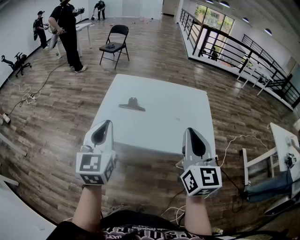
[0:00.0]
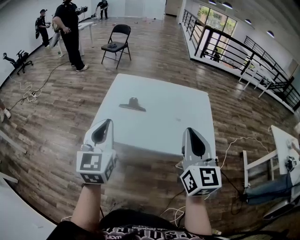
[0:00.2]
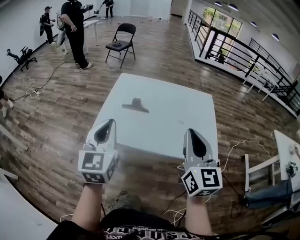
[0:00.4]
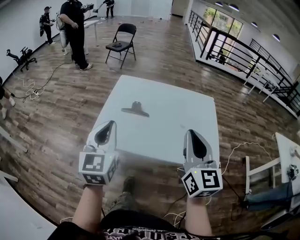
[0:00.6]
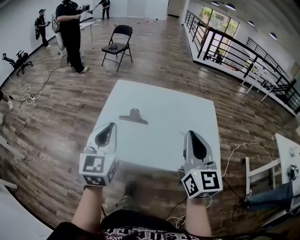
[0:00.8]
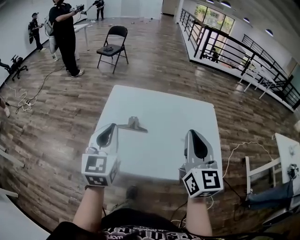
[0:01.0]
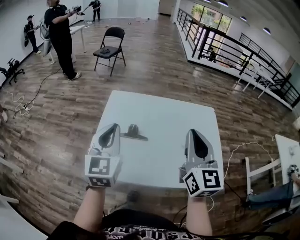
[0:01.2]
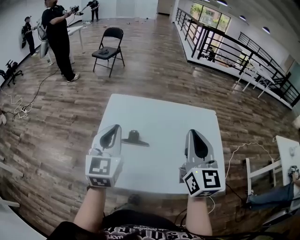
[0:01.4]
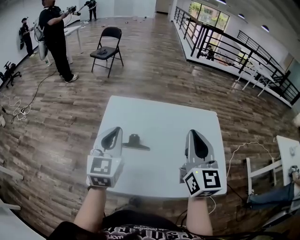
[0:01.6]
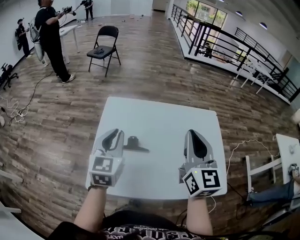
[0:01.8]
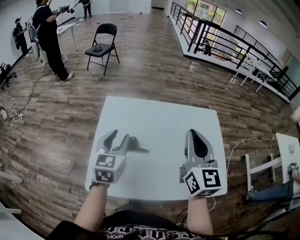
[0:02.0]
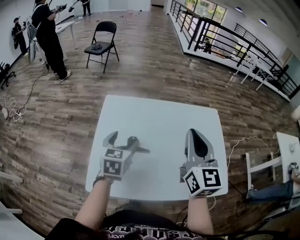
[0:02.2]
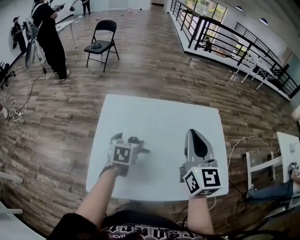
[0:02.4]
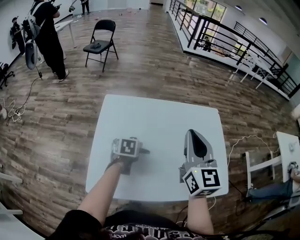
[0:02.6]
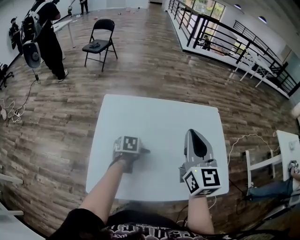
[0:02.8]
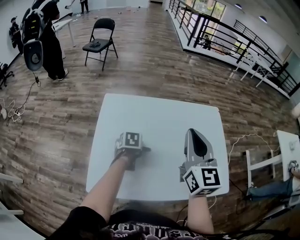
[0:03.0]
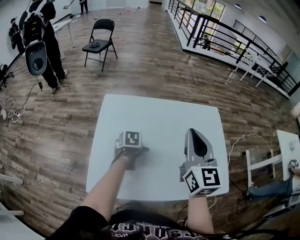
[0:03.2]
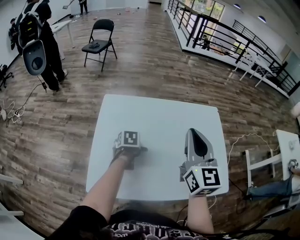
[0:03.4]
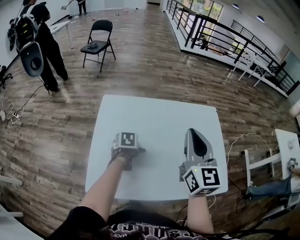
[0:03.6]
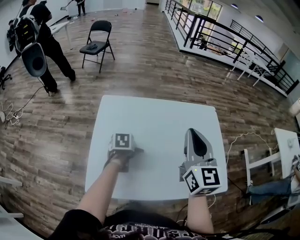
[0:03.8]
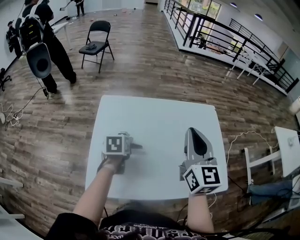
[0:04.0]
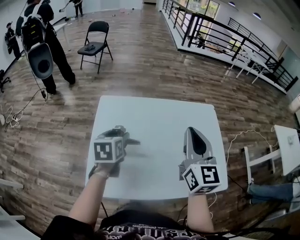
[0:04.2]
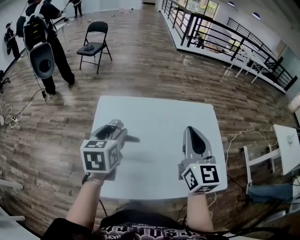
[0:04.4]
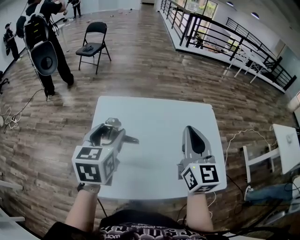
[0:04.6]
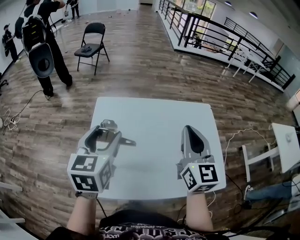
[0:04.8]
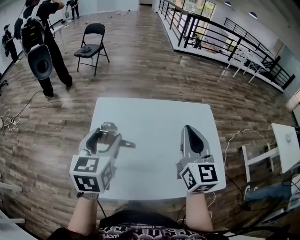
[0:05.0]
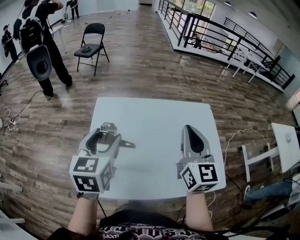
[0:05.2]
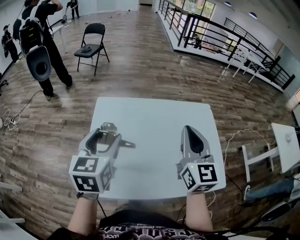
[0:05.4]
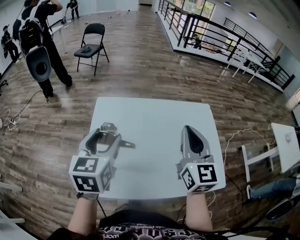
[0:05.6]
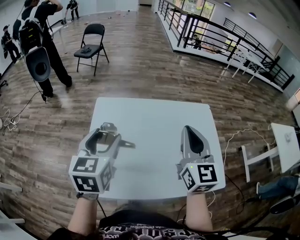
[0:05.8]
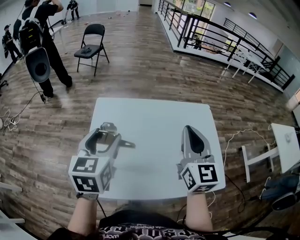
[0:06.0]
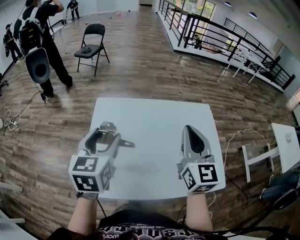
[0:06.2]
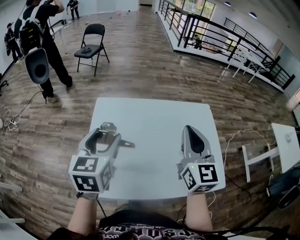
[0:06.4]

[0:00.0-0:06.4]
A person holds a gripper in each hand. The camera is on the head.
0:00.0 to 0:01.6: Both grippers travel together forward, roughly 25 cm.
0:01.6 to 0:03.2: The right gripper shifts by about 5 cm. The left gripper travels downward by some 30 cm, angles its fingers downward, by about 60 degrees, and opens its fingers.
0:03.2 to 0:04.8: The left gripper shifts approximately 30 cm upward, and points its fingers approximately 40 degrees further upward.
0:04.8 to 0:06.4: Neither gripper changes place.

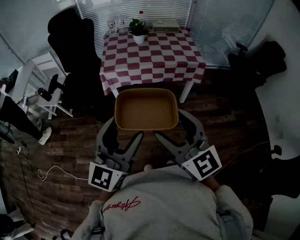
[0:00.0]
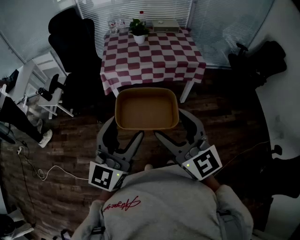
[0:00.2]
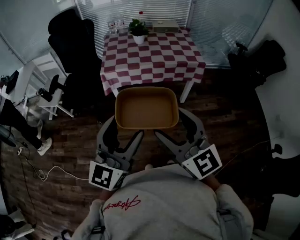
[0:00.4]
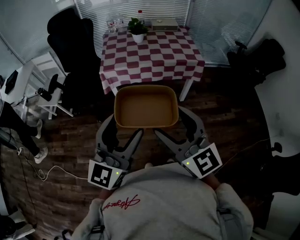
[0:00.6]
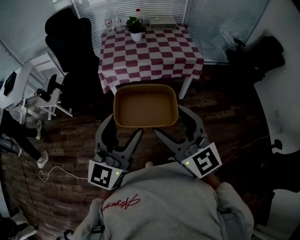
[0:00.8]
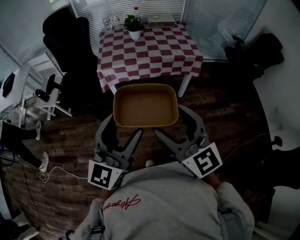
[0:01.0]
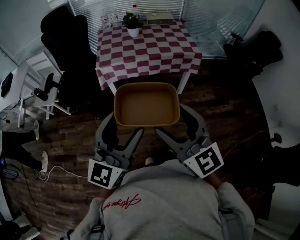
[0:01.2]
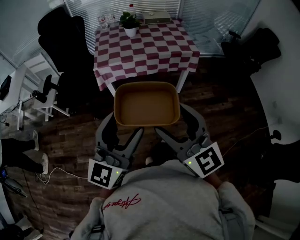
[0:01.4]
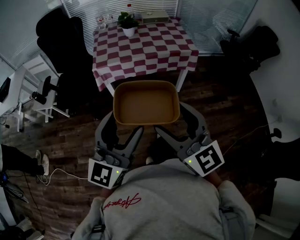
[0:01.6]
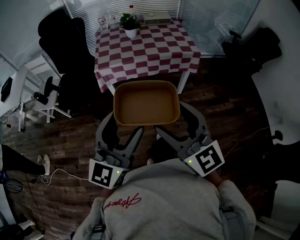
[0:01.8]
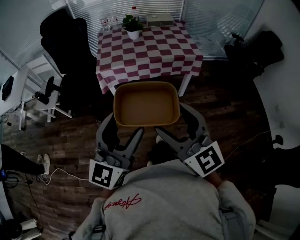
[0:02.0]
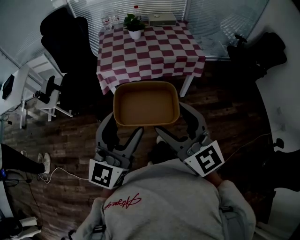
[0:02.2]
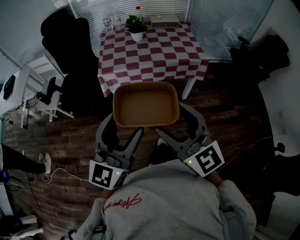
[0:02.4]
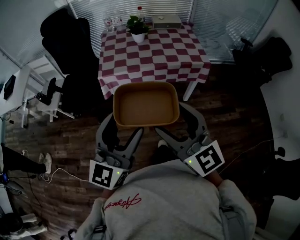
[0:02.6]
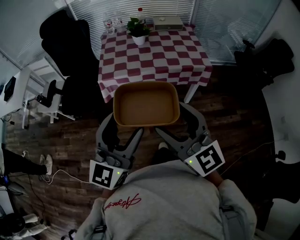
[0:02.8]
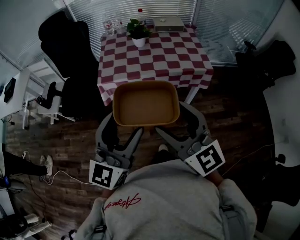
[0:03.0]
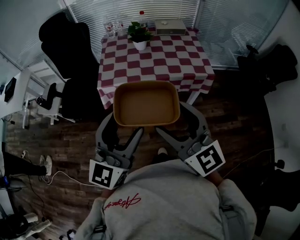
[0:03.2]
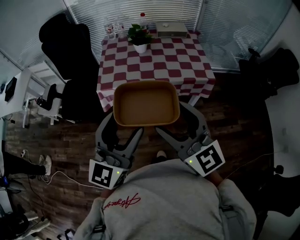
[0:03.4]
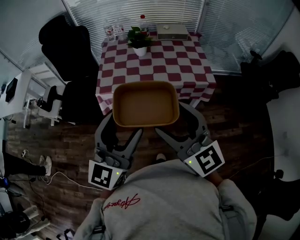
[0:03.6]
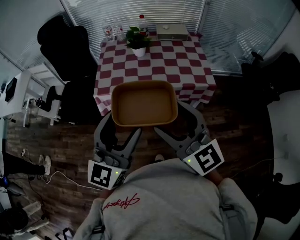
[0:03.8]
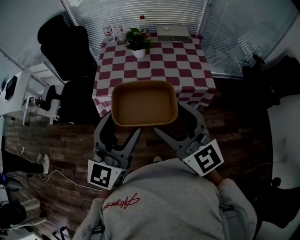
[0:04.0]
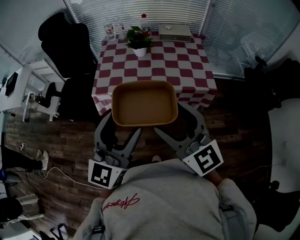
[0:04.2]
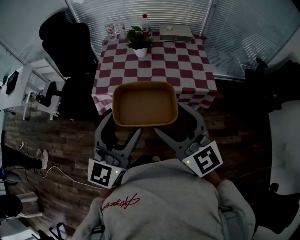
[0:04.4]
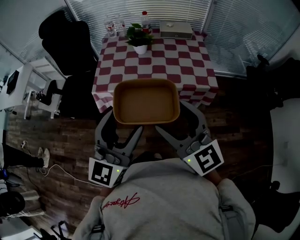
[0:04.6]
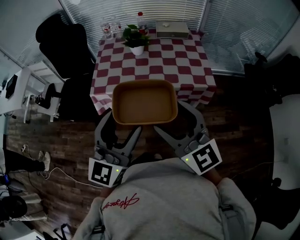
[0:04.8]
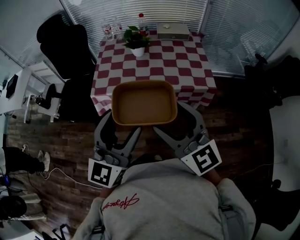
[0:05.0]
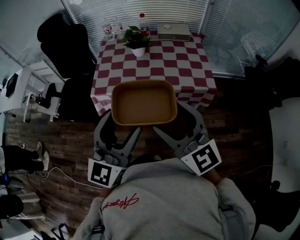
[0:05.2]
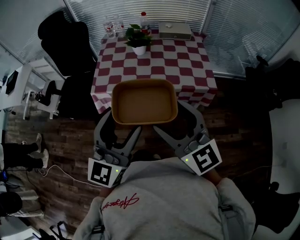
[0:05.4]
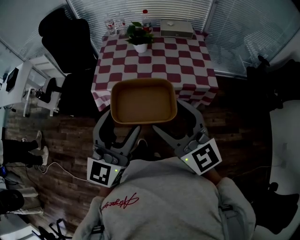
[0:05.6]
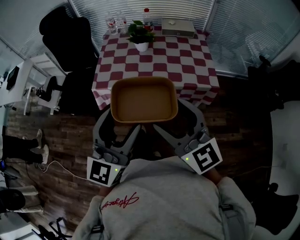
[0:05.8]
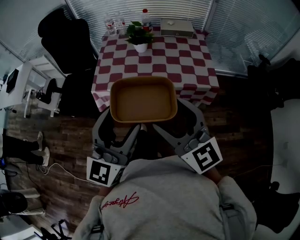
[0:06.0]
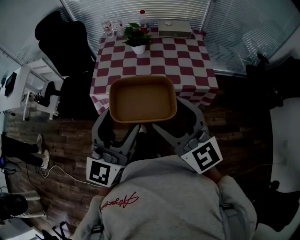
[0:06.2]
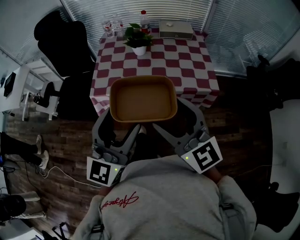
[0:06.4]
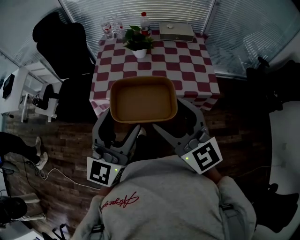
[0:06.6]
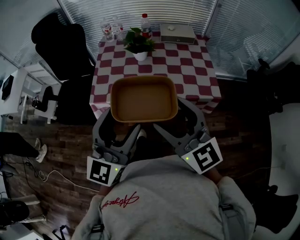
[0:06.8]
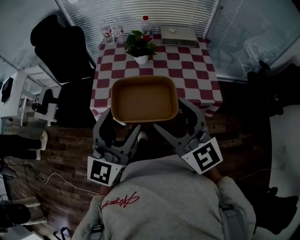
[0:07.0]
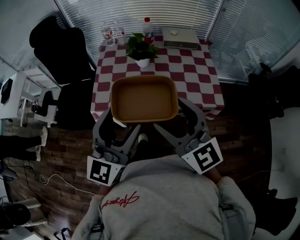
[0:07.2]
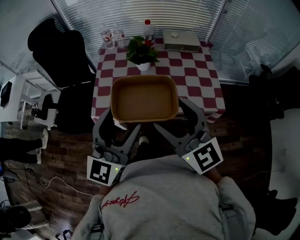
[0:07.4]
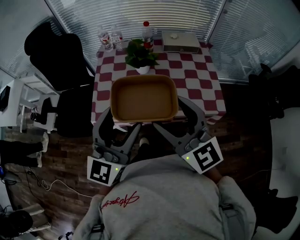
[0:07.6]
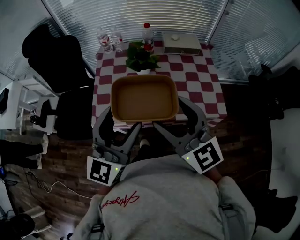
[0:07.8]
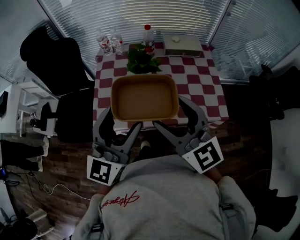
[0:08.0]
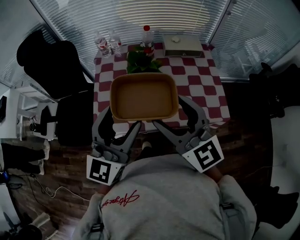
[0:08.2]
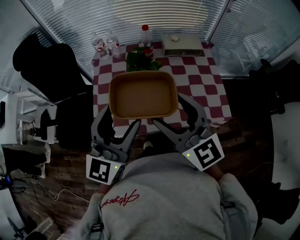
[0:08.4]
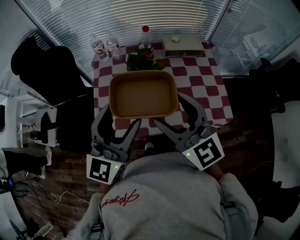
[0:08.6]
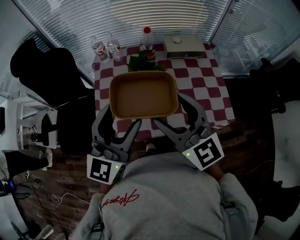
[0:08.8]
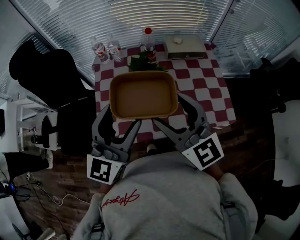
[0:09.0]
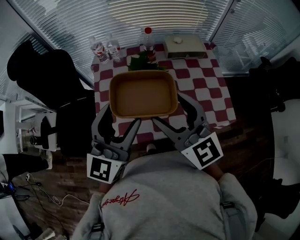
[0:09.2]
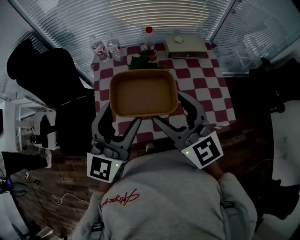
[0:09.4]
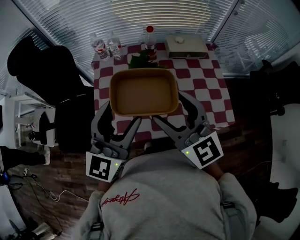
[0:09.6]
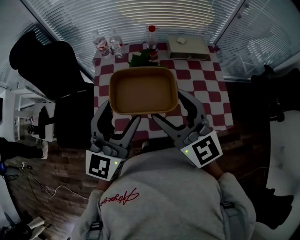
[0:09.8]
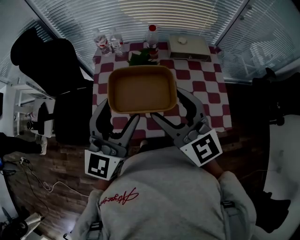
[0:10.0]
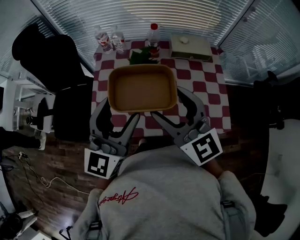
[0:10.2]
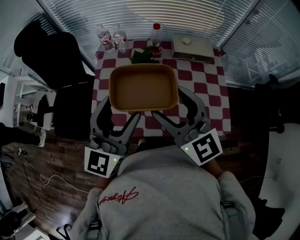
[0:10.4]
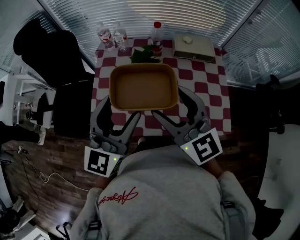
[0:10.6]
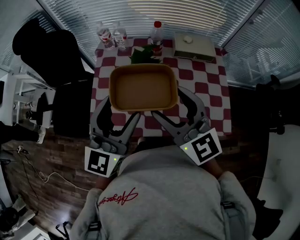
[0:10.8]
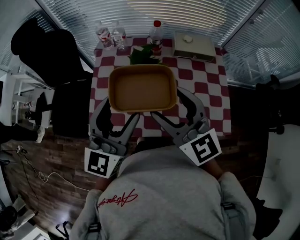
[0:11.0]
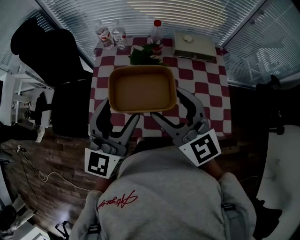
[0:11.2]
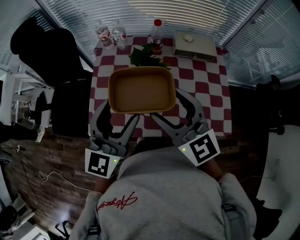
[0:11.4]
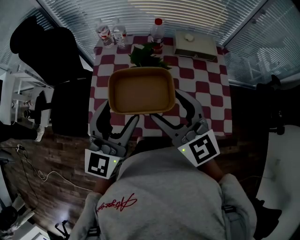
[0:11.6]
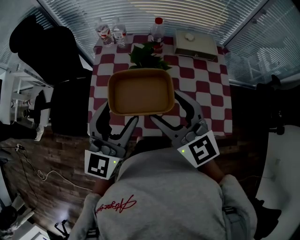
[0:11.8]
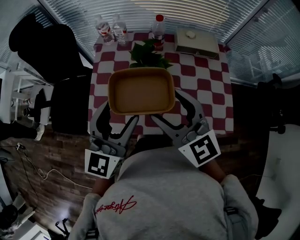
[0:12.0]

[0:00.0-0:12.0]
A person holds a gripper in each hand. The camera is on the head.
0:00.0 to 0:01.6: The grippers stay close to where they were, moving slightly.
0:01.6 to 0:03.0: Both grippers travel together forward, about 15 cm.
0:03.0 to 0:04.4: Both grippers travel together forward and to the right, about 15 cm.
0:04.4 to 0:06.0: Both grippers stay about where they are.
0:06.0 to 0:07.6: Both grippers travel together forward, some 20 cm.
0:07.6 to 0:09.0: The grippers both shift forward by approximately 15 cm.
0:09.0 to 0:10.4: The grippers make only small movements.
0:10.4 to 0:12.0: The left gripper goes roughly 5 cm downward.

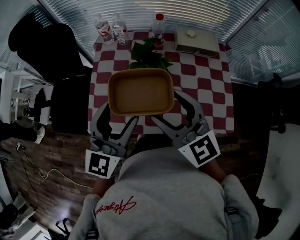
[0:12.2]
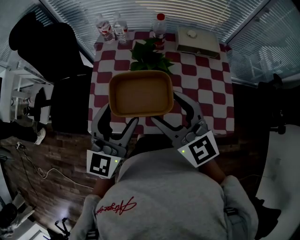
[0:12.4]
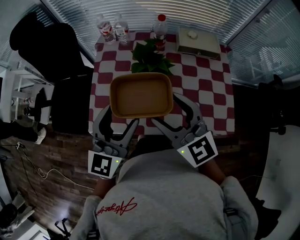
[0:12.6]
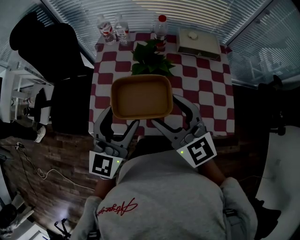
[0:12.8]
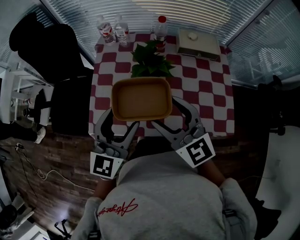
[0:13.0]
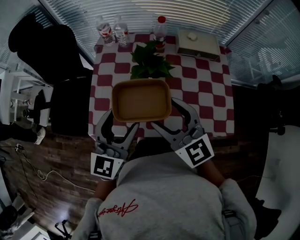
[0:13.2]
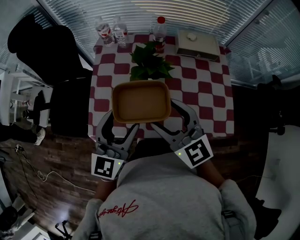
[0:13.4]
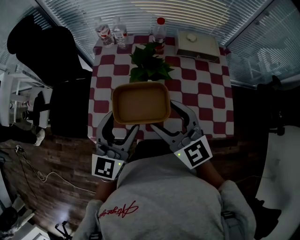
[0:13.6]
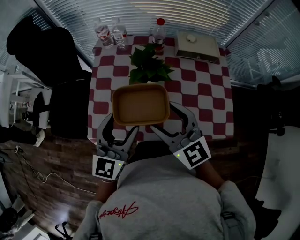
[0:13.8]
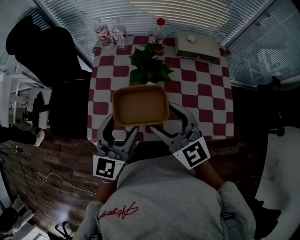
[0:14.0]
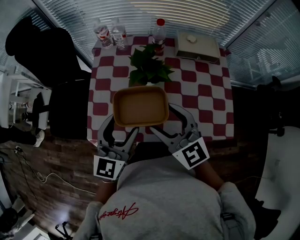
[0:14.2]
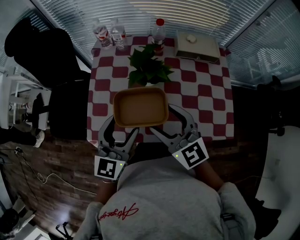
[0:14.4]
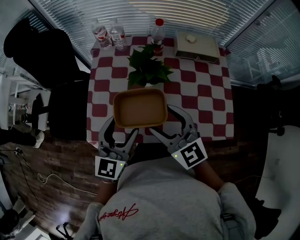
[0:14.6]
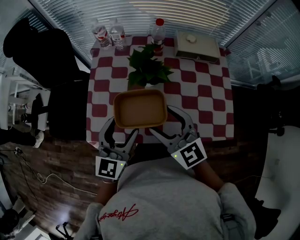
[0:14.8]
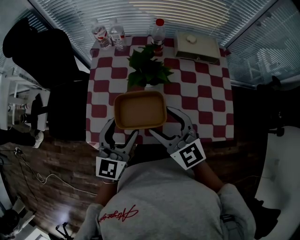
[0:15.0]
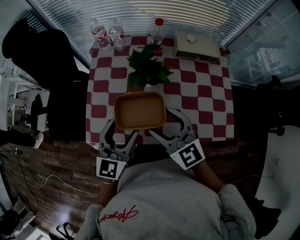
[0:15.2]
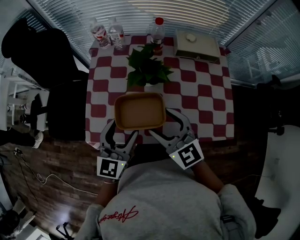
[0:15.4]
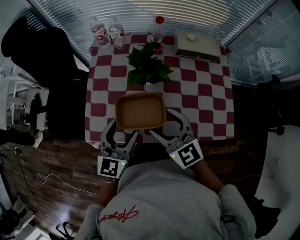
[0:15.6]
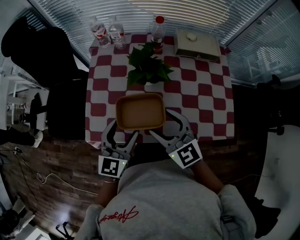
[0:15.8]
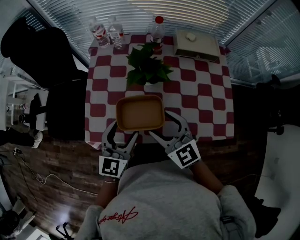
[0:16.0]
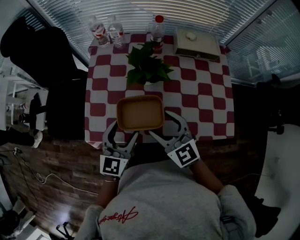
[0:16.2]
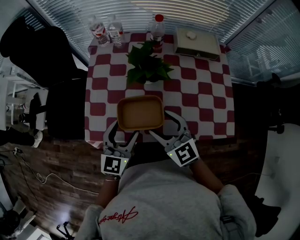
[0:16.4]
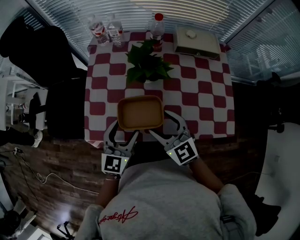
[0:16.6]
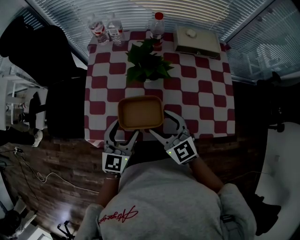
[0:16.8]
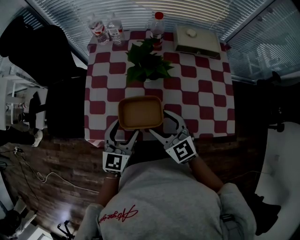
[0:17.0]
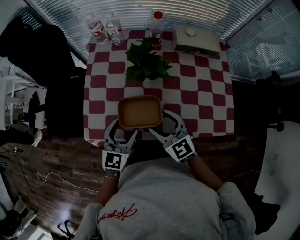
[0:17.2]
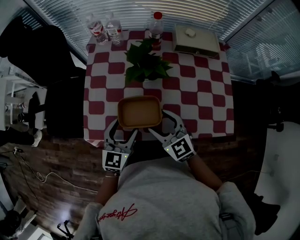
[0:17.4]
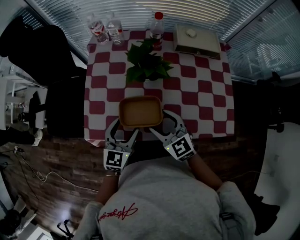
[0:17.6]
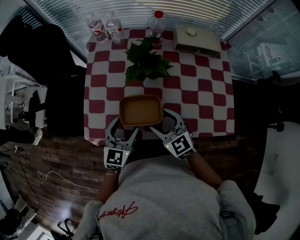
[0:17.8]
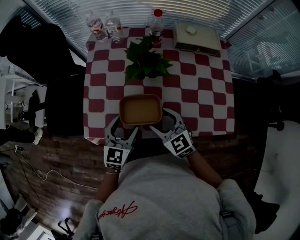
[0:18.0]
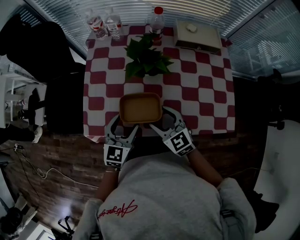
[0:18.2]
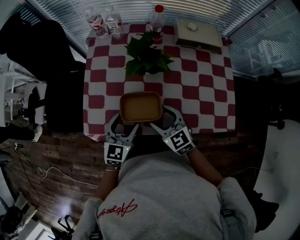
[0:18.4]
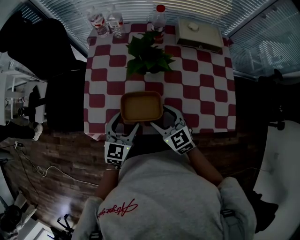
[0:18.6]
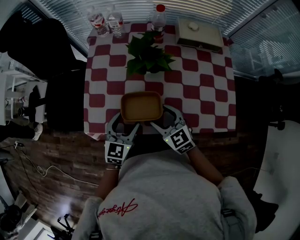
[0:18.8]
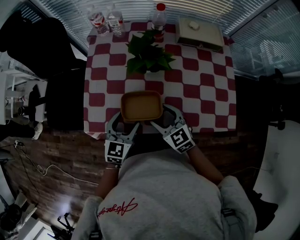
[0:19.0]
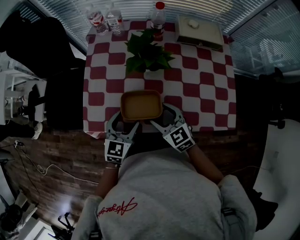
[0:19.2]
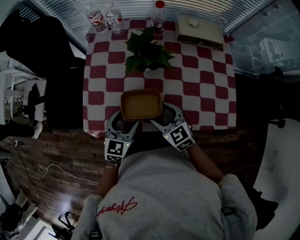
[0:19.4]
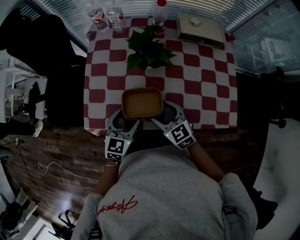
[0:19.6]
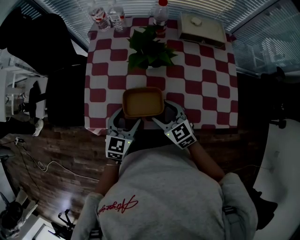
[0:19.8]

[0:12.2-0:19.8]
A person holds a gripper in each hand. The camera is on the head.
0:12.2 to 0:13.8: Both grippers travel together downward, roughly 5 cm.
0:13.8 to 0:15.2: The grippers stay close to where they were, moving slightly.
0:15.2 to 0:16.8: Both grippers travel together downward, approximately 5 cm.
0:16.8 to 0:18.2: The right gripper heads downward, covering approximately 5 cm.
0:18.2 to 0:19.8: There are only small adjustments of the grippers.
